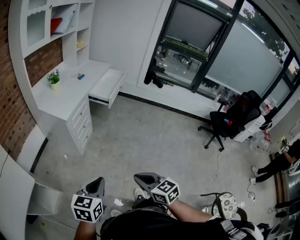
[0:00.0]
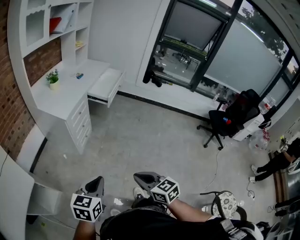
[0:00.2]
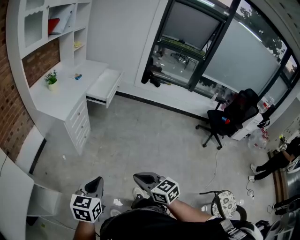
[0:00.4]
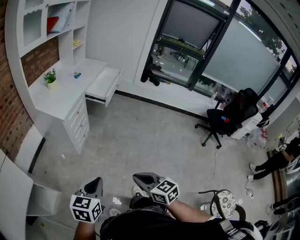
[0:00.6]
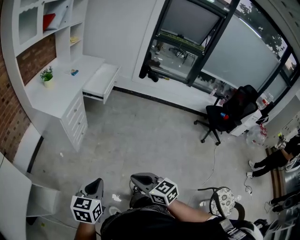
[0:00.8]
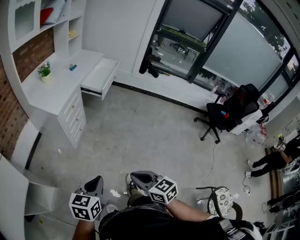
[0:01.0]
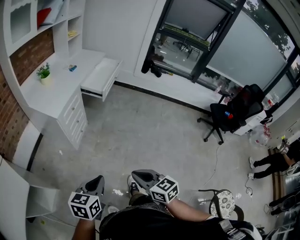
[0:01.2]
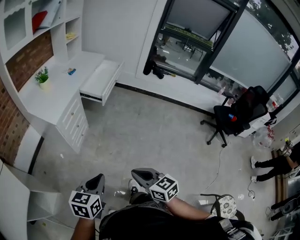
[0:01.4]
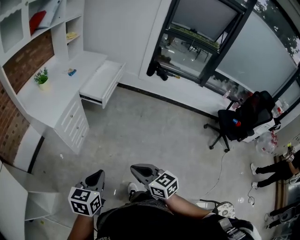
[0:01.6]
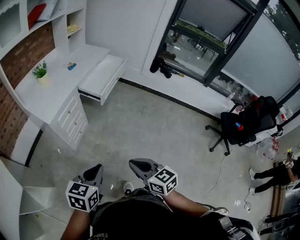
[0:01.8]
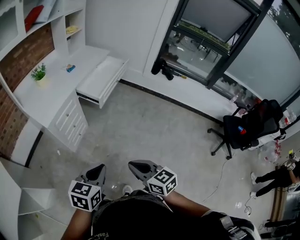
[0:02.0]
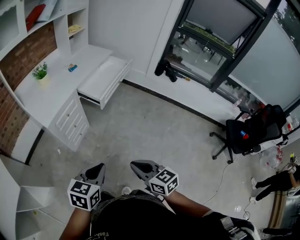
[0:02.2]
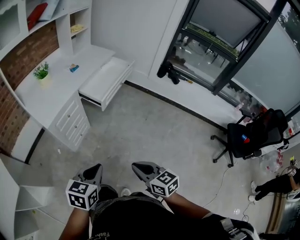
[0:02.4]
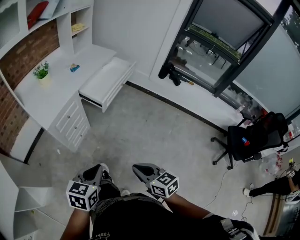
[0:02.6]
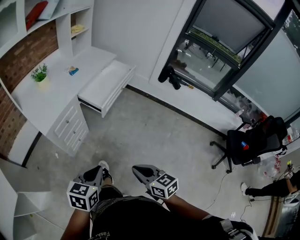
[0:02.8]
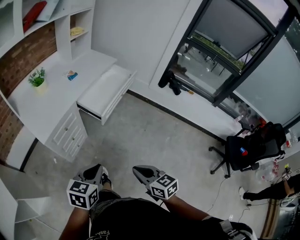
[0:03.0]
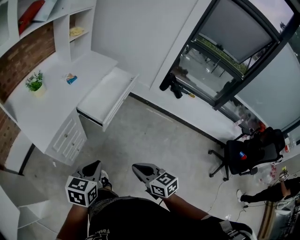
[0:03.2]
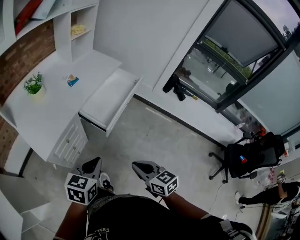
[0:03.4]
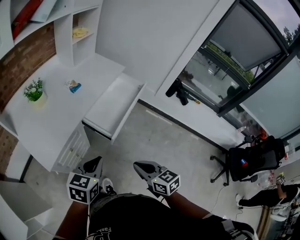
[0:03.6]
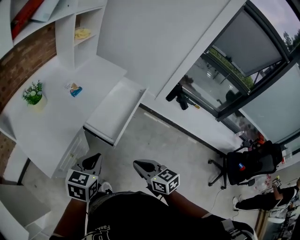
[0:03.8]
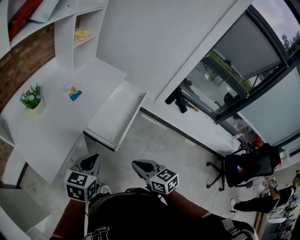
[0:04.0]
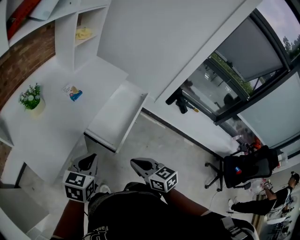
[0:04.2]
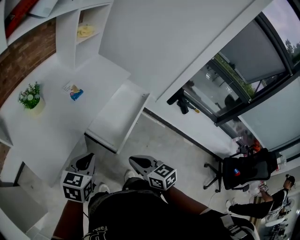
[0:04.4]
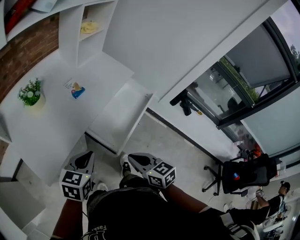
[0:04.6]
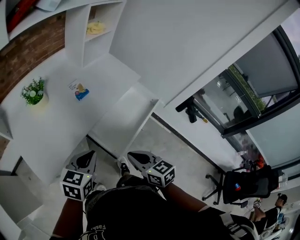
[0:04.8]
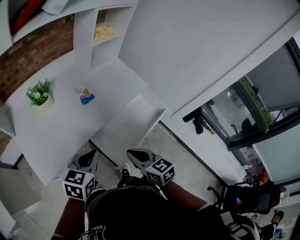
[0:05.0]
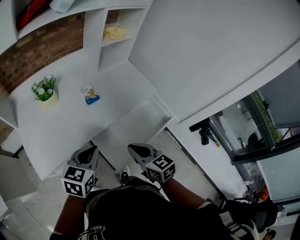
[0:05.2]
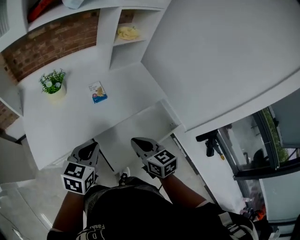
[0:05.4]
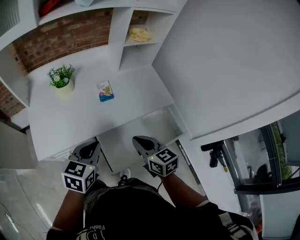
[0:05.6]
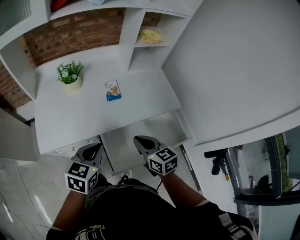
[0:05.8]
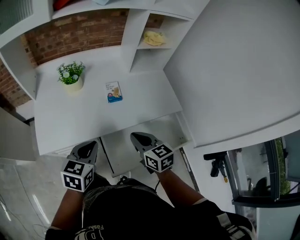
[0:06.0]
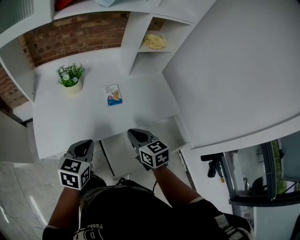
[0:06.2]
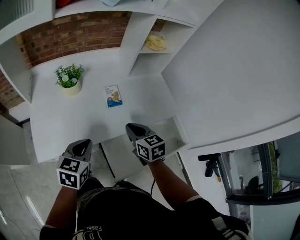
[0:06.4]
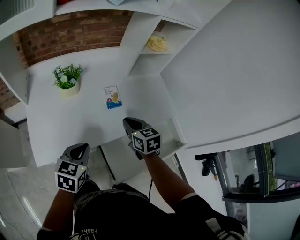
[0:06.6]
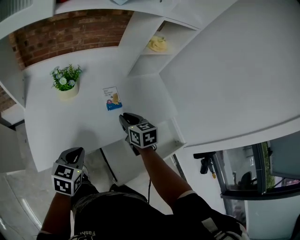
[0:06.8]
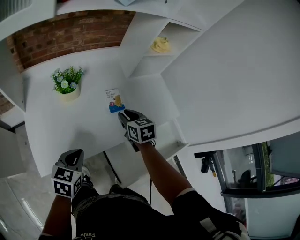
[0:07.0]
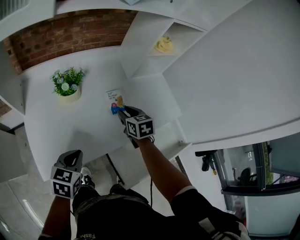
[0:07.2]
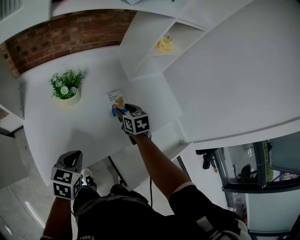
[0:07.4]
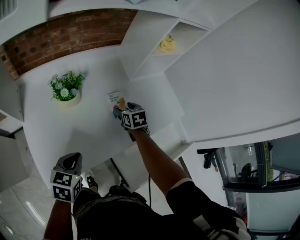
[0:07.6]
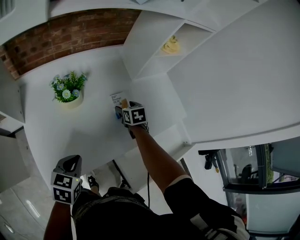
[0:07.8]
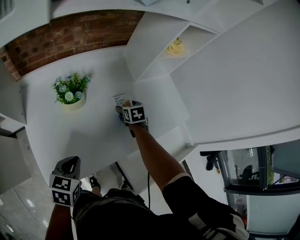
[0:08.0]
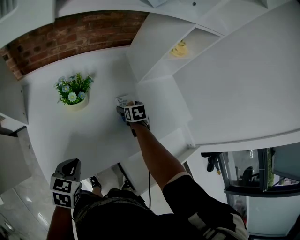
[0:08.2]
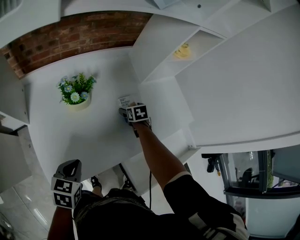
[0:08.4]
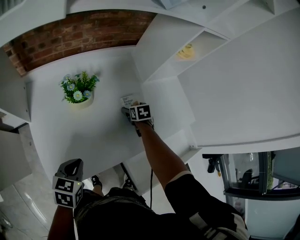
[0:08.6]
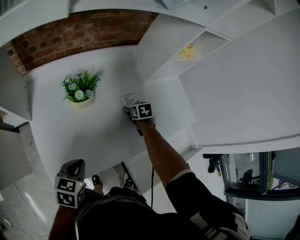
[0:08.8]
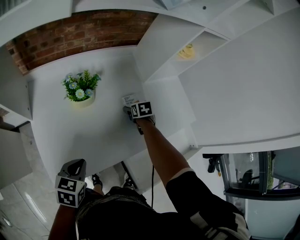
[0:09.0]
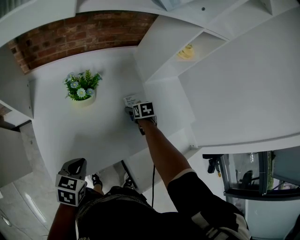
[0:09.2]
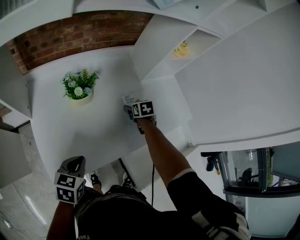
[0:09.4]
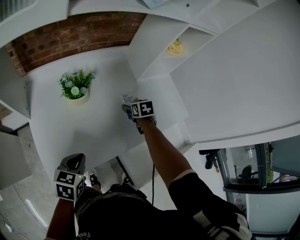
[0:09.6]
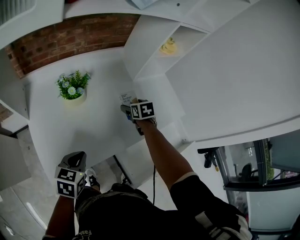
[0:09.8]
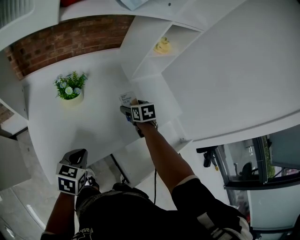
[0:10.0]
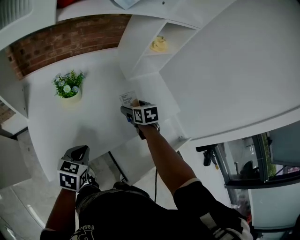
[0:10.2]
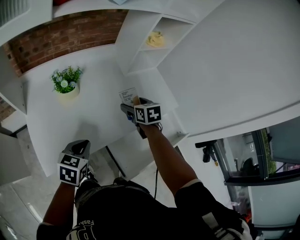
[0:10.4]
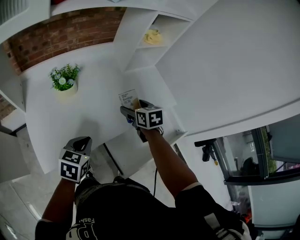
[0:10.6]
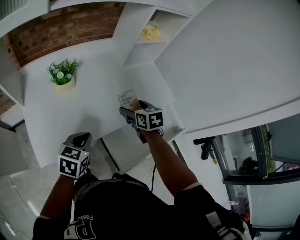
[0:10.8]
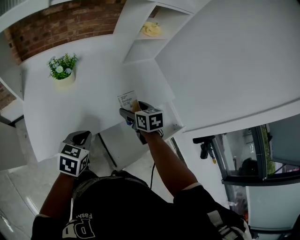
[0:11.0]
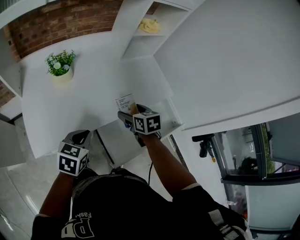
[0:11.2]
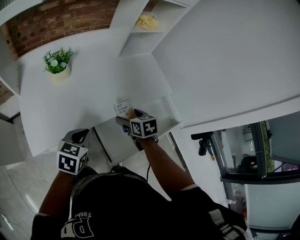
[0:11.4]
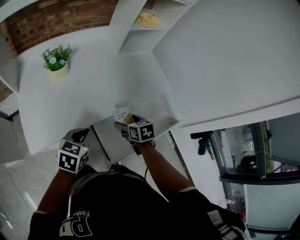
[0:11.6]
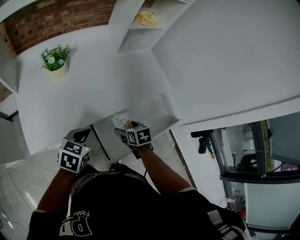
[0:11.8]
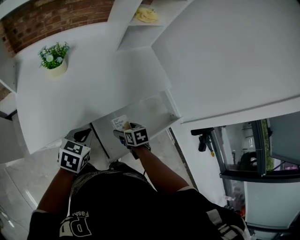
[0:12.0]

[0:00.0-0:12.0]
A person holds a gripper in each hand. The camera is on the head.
0:00.0 to 0:01.6: The grippers both shift forward and to the right by about 20 cm.
0:01.6 to 0:03.0: The right gripper travels forward and to the right by approximately 25 cm, while the left gripper moves forward, some 25 cm.
0:03.0 to 0:04.4: The two grippers go roughly 35 cm forward.
0:04.4 to 0:06.0: The right gripper changes place by some 25 cm, and turns by some 30 degrees; the left gripper ends up approximately 15 cm from where it was, and turns by some 40 degrees.
0:06.0 to 0:07.6: The right gripper shifts approximately 30 cm forward and downward, rotates some 30 degrees, and opens up, while the left gripper is displaced to the left, forward and downward by some 20 cm.
0:07.6 to 0:09.0: The right gripper shifts approximately 10 cm downward. Meanwhile the left gripper moves roughly 5 cm.
0:09.0 to 0:10.4: The left gripper heads to the right and upward, covering approximately 10 cm. Meanwhile the right gripper is displaced upward and backward by roughly 20 cm.
0:10.4 to 0:12.0: The left gripper moves to the right, approximately 10 cm. Meanwhile the right gripper heads backward, downward and to the right, covering approximately 25 cm.

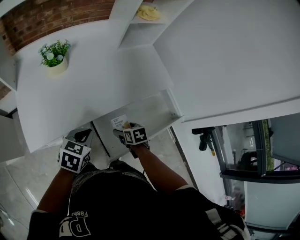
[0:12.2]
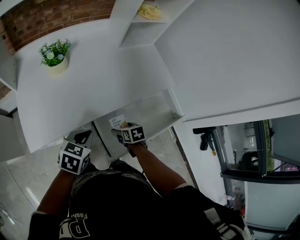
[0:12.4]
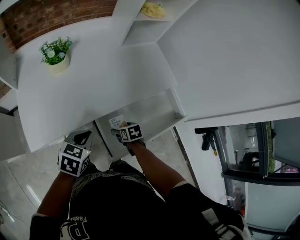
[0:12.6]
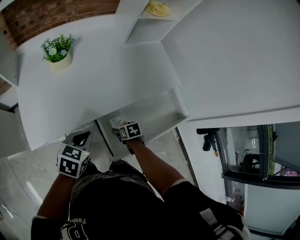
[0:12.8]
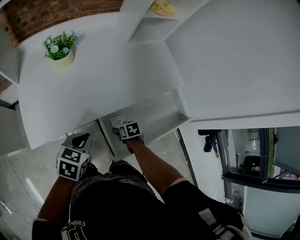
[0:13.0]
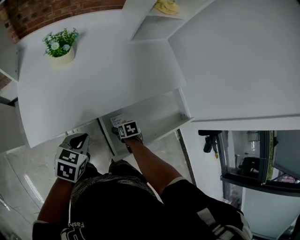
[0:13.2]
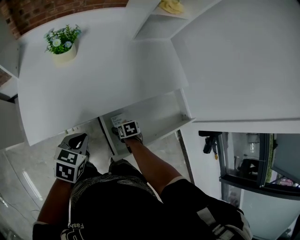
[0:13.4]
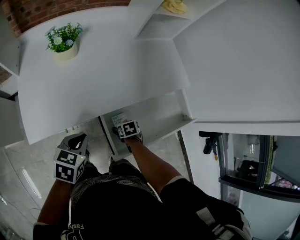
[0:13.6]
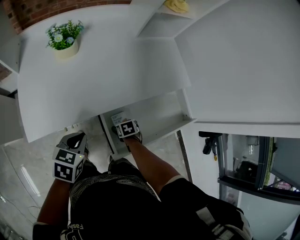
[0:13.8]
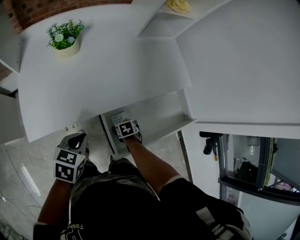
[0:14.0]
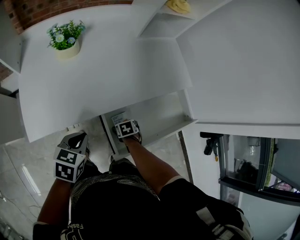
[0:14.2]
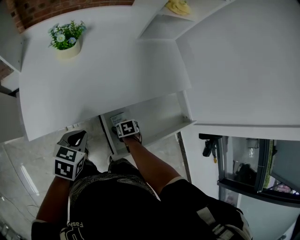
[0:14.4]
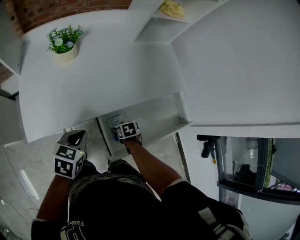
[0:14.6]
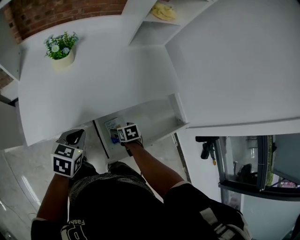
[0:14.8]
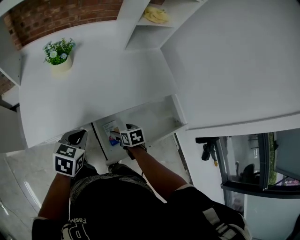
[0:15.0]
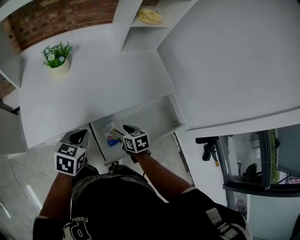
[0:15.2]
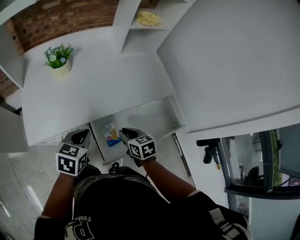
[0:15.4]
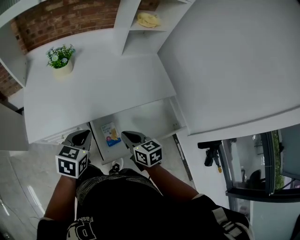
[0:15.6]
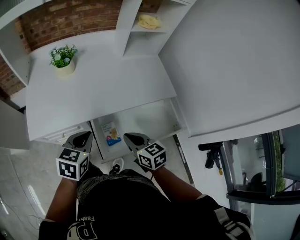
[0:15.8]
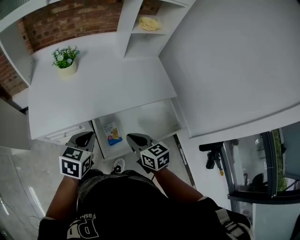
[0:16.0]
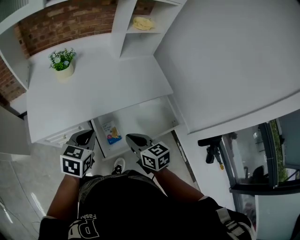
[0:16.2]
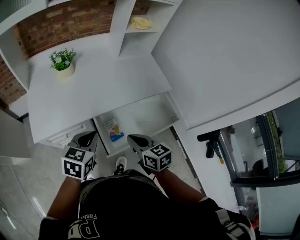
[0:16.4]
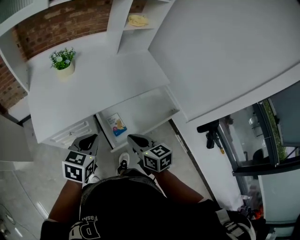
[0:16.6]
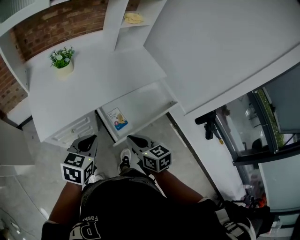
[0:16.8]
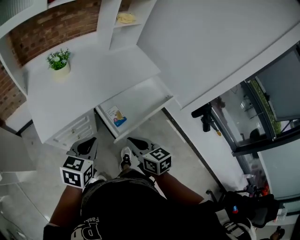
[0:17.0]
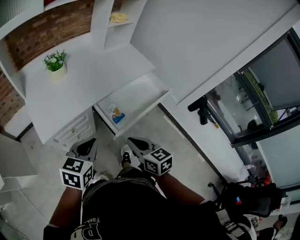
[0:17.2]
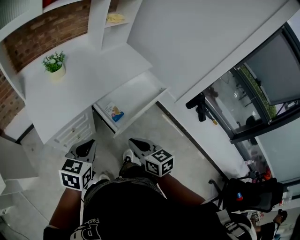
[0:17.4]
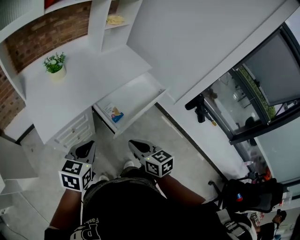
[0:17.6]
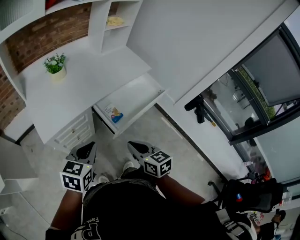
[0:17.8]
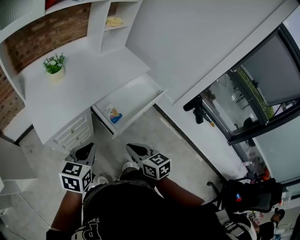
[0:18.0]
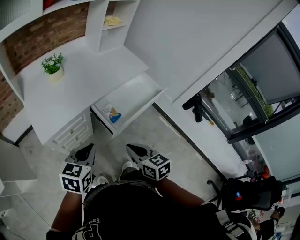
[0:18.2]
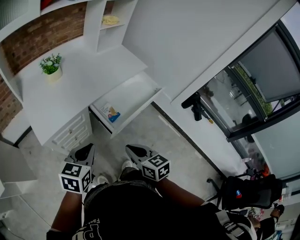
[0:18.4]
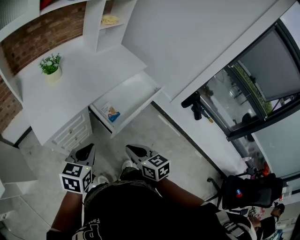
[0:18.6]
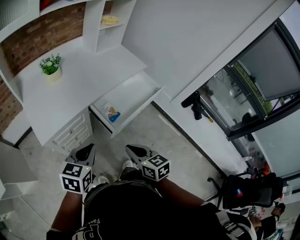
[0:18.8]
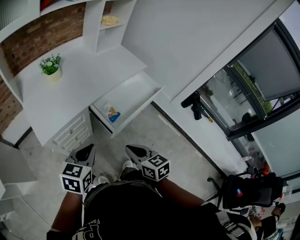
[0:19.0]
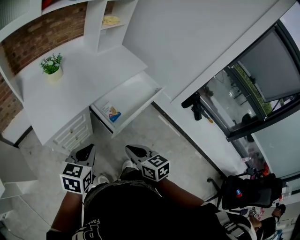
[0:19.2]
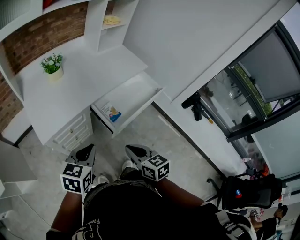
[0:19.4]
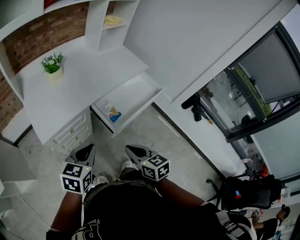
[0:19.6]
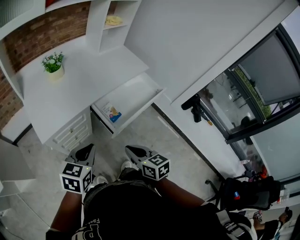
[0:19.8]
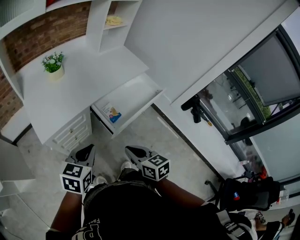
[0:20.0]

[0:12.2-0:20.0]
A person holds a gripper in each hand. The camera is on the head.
0:12.2 to 0:13.8: The right gripper moves downward, about 15 cm; the left gripper ends up approximately 5 cm from where it was.
0:13.8 to 0:15.4: The right gripper moves upward, about 20 cm, points its fingers roughly 30 degrees further upward, and closes its fingers. The left gripper shifts by approximately 10 cm.
0:15.4 to 0:16.8: The left gripper travels backward and to the left by about 15 cm. Meanwhile the right gripper is displaced backward, upward and to the left by some 20 cm.
0:16.8 to 0:18.4: Both grippers move backward, approximately 10 cm.
0:18.4 to 0:20.0: There are only small adjustments of the grippers.

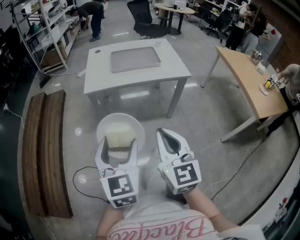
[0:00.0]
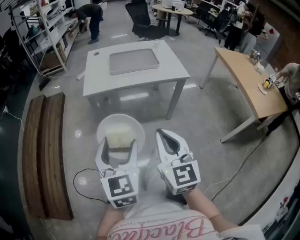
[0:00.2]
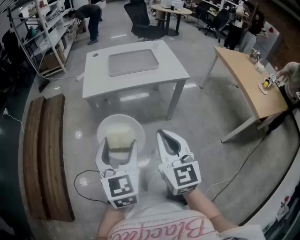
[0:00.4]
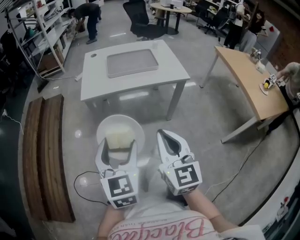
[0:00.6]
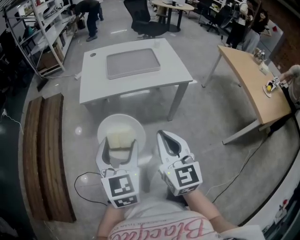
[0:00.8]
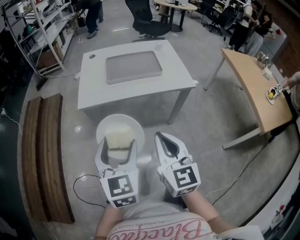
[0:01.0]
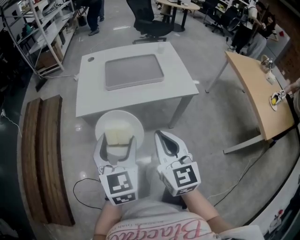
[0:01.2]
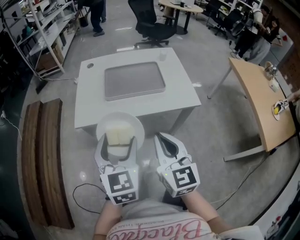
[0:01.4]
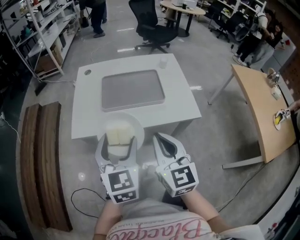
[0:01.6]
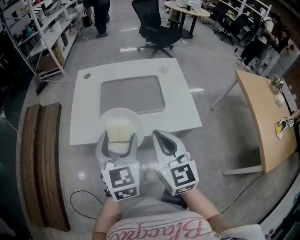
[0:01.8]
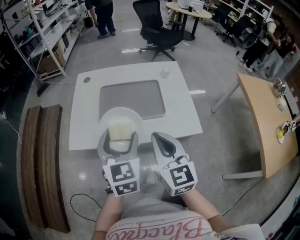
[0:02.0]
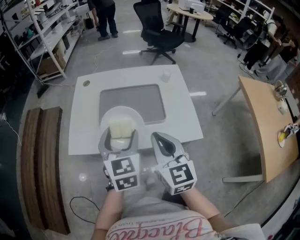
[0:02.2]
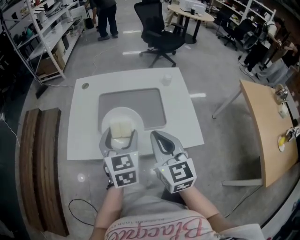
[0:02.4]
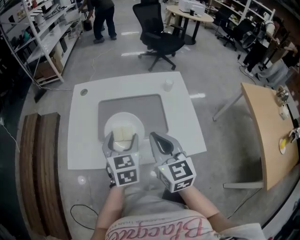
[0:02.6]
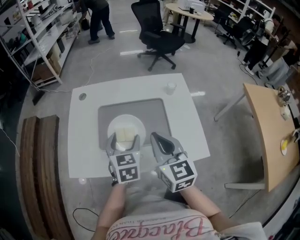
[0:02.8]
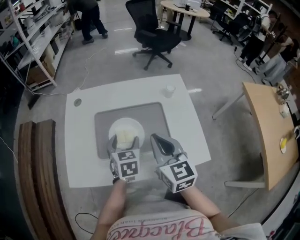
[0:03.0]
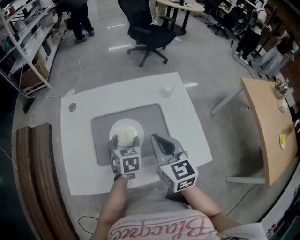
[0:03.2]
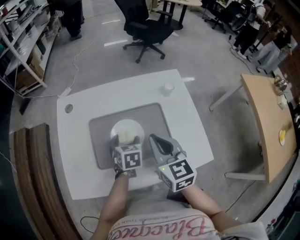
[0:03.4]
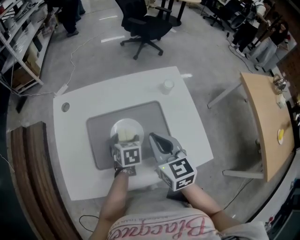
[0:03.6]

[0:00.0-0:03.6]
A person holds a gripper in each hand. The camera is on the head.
0:00.0 to 0:01.8: The two grippers go roughly 30 cm forward.
0:01.8 to 0:03.6: The right gripper shifts approximately 20 cm forward and downward; the left gripper travels downward and forward by about 35 cm, and points its fingers about 30 degrees further downward.
